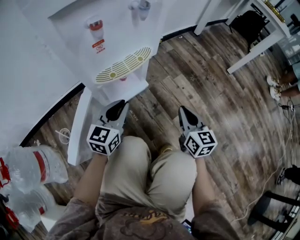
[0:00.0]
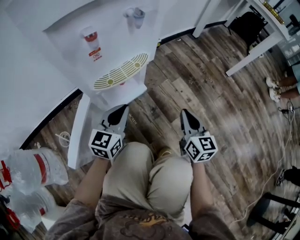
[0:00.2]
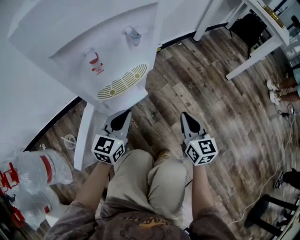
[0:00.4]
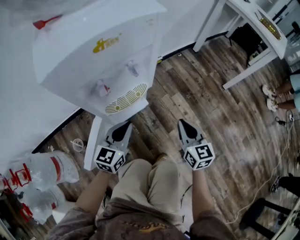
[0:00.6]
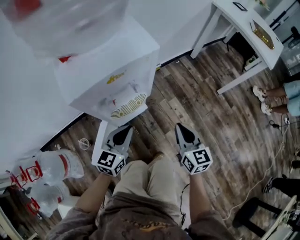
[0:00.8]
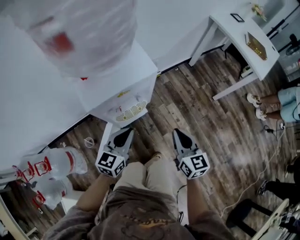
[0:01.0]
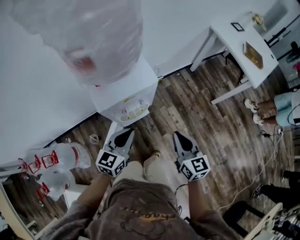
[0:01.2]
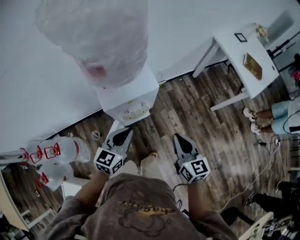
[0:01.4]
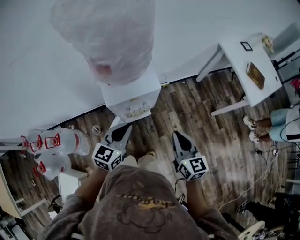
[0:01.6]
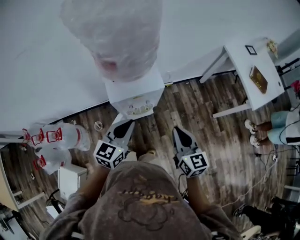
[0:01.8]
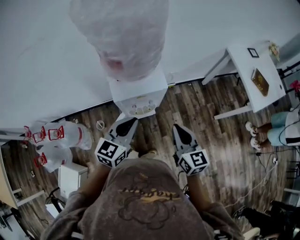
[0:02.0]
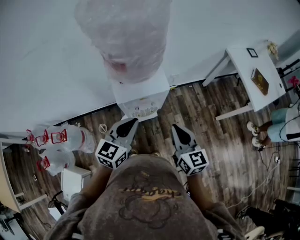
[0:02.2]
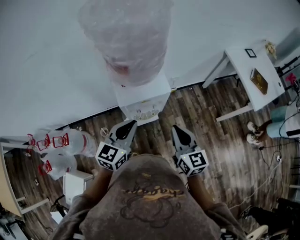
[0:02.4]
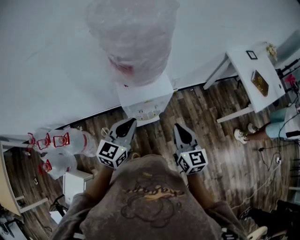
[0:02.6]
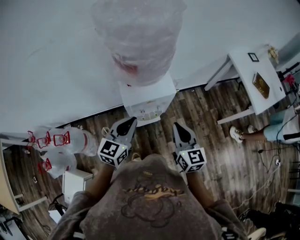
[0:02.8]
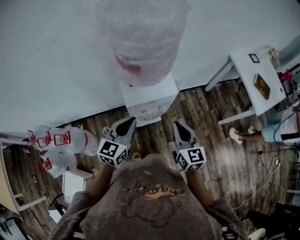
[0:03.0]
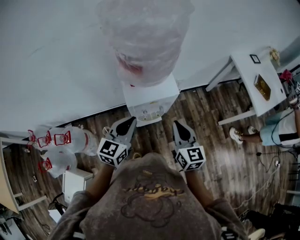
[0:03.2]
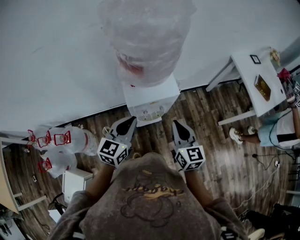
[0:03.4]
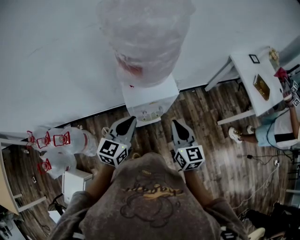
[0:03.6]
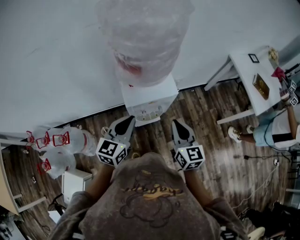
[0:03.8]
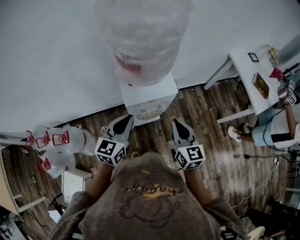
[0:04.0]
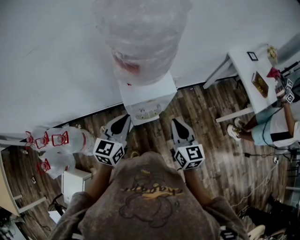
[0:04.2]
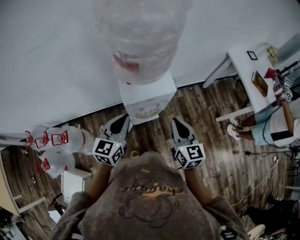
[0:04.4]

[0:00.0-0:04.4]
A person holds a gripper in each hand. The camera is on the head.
0:00.0 to 0:01.4: Both grippers move upward, roughly 60 cm.
0:01.4 to 0:03.0: The left gripper shifts approximately 10 cm upward and to the left. Meanwhile the right gripper travels to the left and upward by about 10 cm.
0:03.0 to 0:04.4: The grippers move only a little.

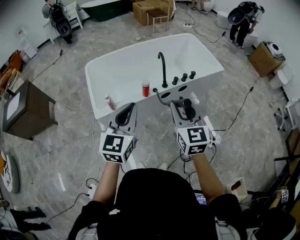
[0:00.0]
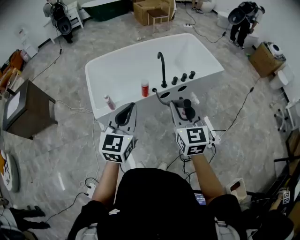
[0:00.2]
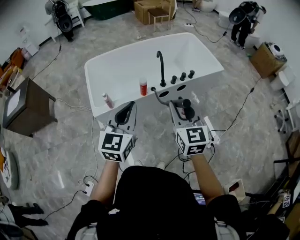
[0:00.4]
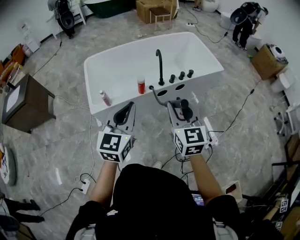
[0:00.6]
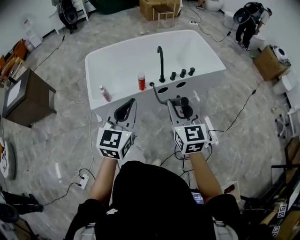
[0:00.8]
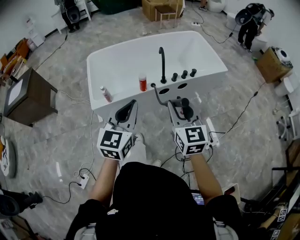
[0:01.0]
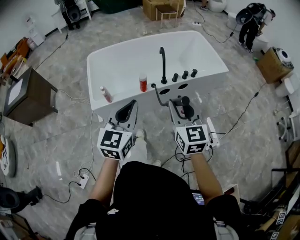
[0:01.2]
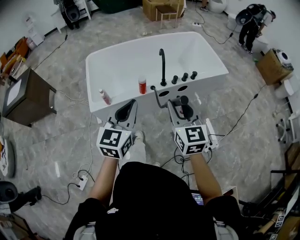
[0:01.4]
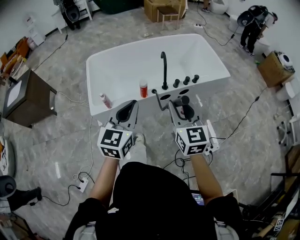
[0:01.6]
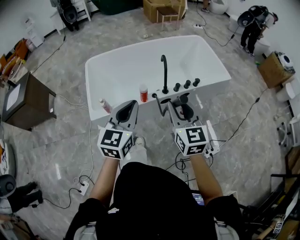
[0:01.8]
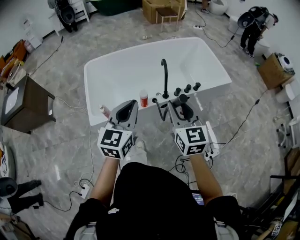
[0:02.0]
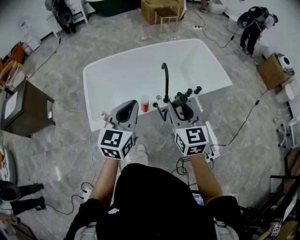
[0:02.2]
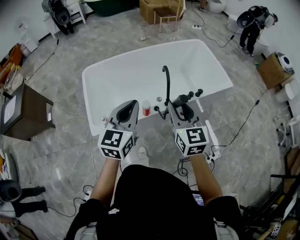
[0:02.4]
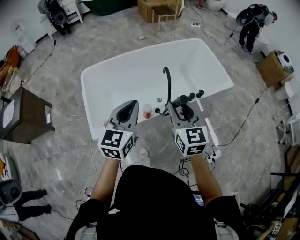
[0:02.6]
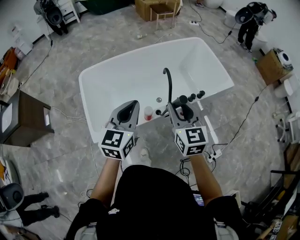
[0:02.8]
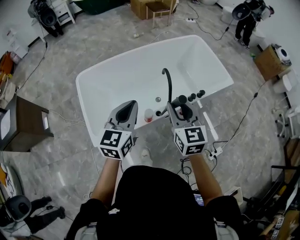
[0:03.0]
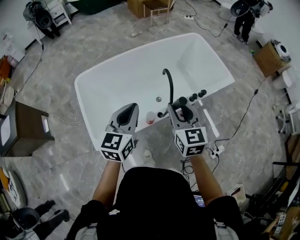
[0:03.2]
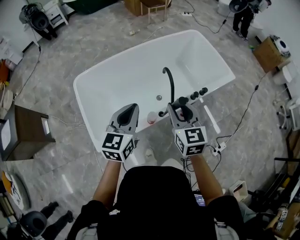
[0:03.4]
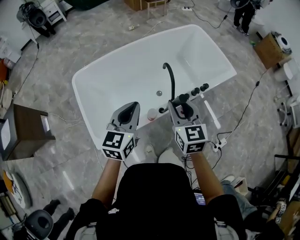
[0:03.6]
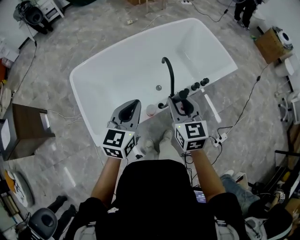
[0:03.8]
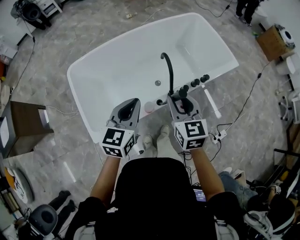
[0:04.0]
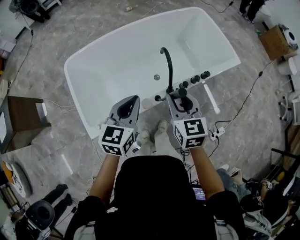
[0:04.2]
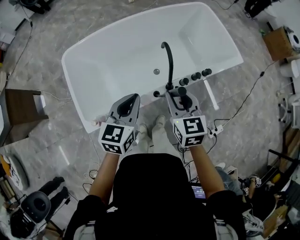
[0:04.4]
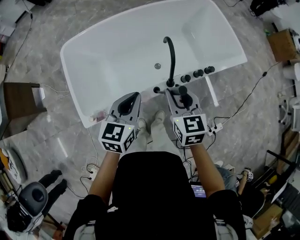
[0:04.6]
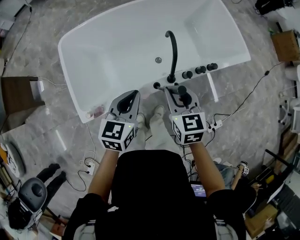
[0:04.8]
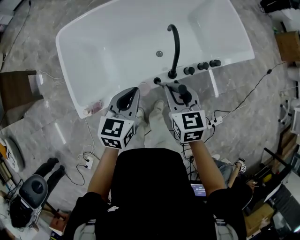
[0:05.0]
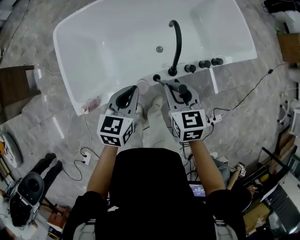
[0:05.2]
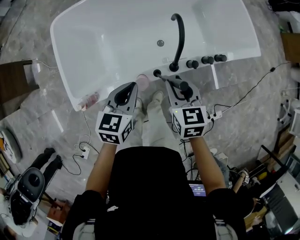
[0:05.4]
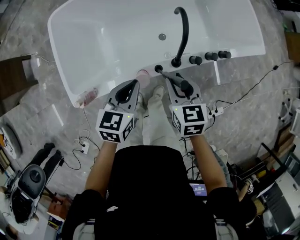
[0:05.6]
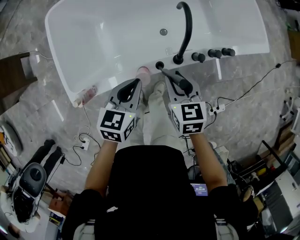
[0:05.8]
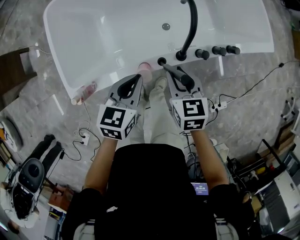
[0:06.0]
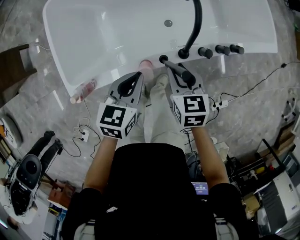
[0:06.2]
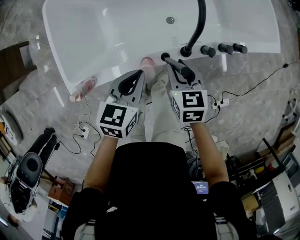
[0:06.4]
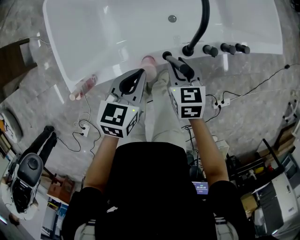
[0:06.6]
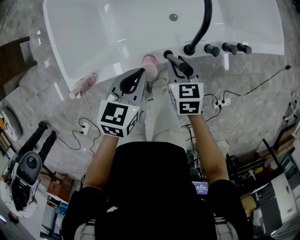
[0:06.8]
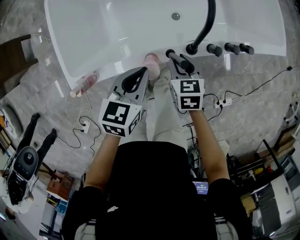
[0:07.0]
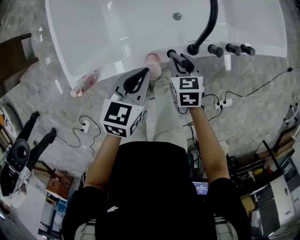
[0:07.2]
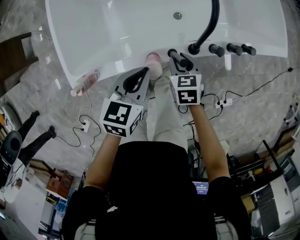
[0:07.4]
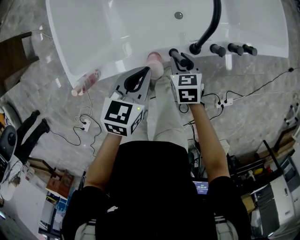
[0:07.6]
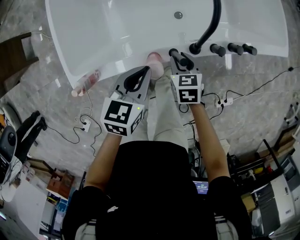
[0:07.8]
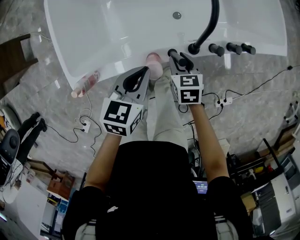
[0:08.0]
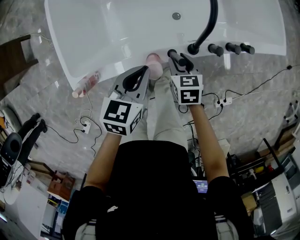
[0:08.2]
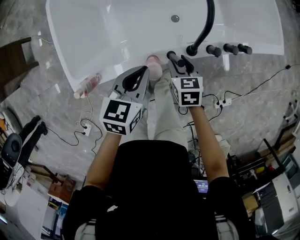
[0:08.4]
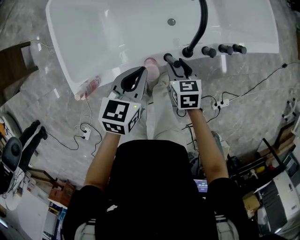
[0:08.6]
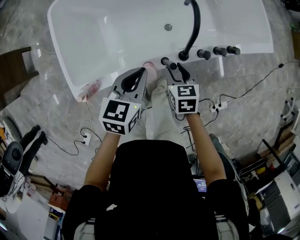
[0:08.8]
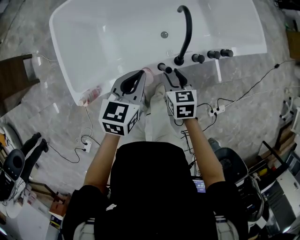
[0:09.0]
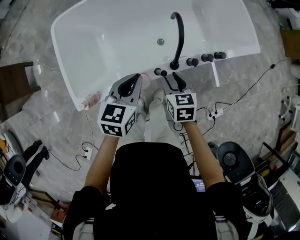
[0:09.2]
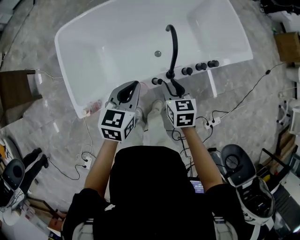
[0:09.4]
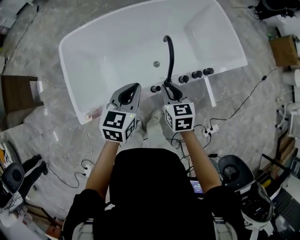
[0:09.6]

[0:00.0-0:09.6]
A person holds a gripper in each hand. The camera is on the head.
0:00.0 to 0:01.6: The right gripper travels forward by approximately 5 cm; the left gripper shifts about 10 cm to the right and forward.
0:01.6 to 0:03.2: The grippers both shift forward by approximately 30 cm.
0:03.2 to 0:04.8: The grippers both shift downward by about 15 cm.
0:04.8 to 0:06.4: Both grippers move downward, some 20 cm.
0:06.4 to 0:08.0: The right gripper goes about 10 cm downward.
0:08.0 to 0:09.6: Both grippers move upward, about 20 cm.

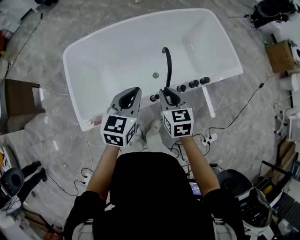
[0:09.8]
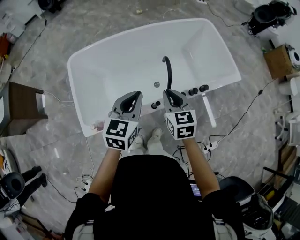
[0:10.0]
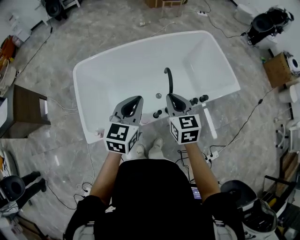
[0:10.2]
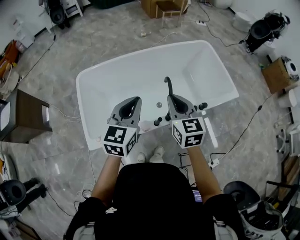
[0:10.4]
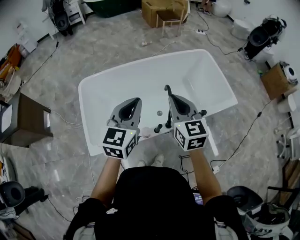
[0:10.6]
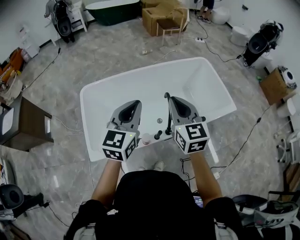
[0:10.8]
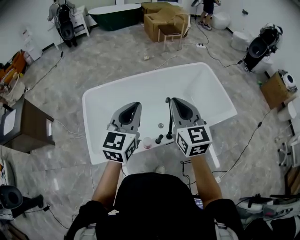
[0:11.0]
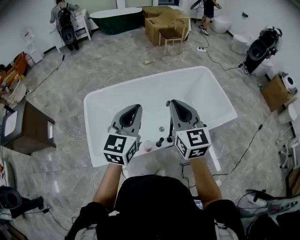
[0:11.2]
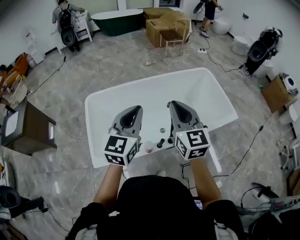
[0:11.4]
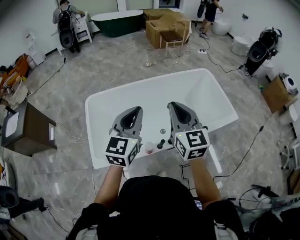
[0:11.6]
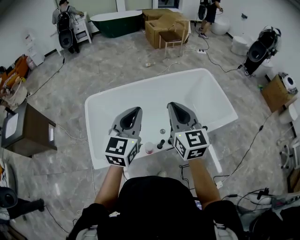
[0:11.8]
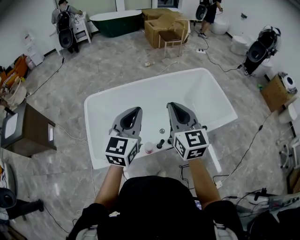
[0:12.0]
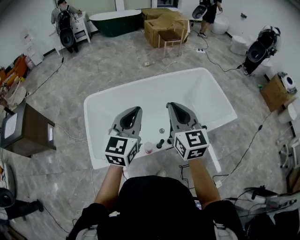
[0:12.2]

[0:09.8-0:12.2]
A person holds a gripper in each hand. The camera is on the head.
0:09.8 to 0:11.0: Both grippers move upward, some 25 cm. The right gripper rotates some 30 degrees; the left gripper turns by some 20 degrees.
0:11.0 to 0:12.2: The grippers stay close to where they were, moving slightly.

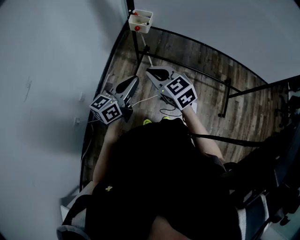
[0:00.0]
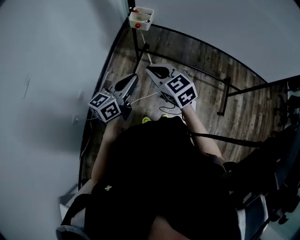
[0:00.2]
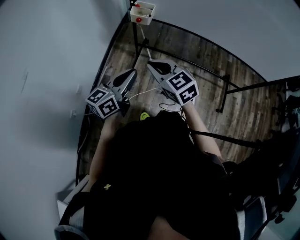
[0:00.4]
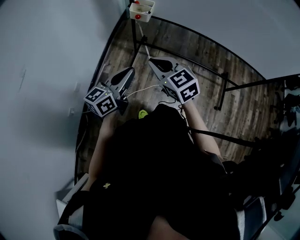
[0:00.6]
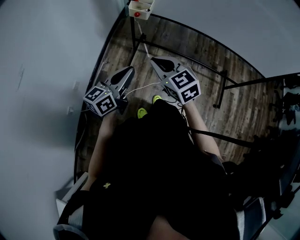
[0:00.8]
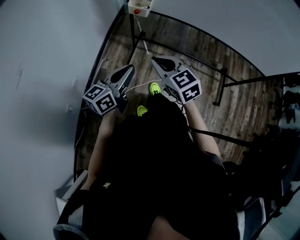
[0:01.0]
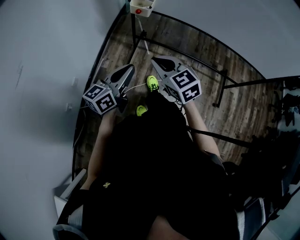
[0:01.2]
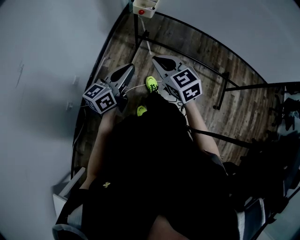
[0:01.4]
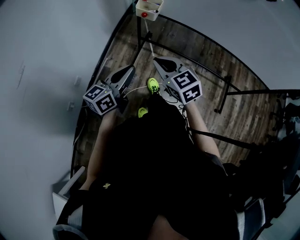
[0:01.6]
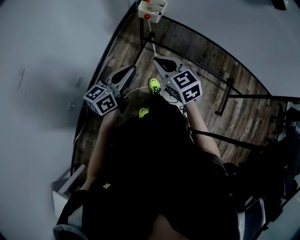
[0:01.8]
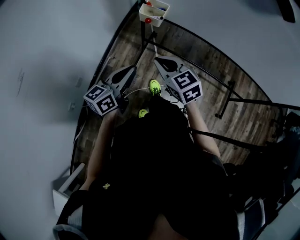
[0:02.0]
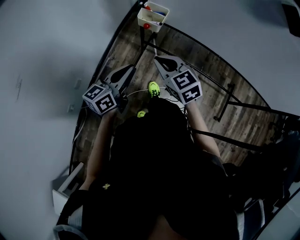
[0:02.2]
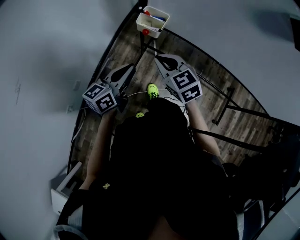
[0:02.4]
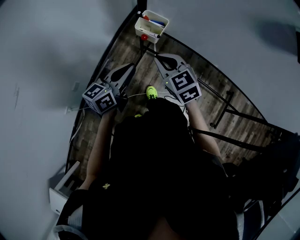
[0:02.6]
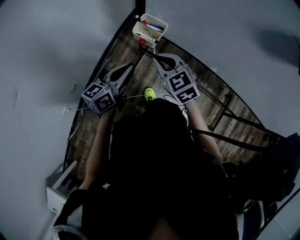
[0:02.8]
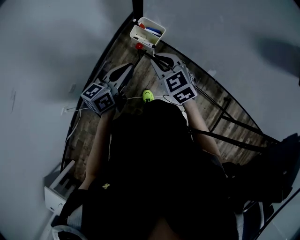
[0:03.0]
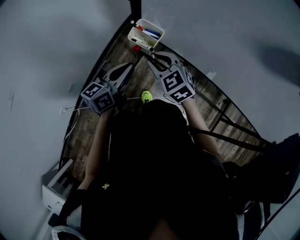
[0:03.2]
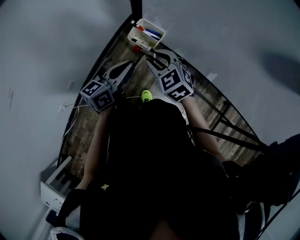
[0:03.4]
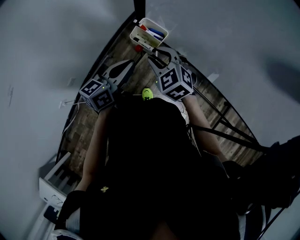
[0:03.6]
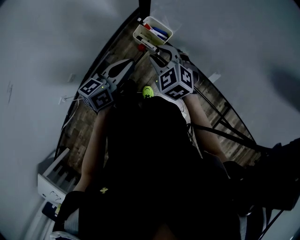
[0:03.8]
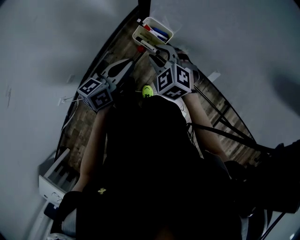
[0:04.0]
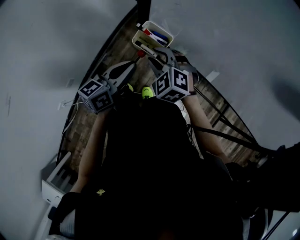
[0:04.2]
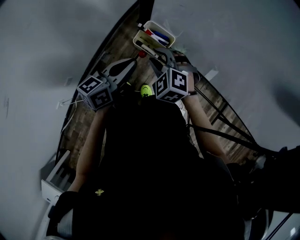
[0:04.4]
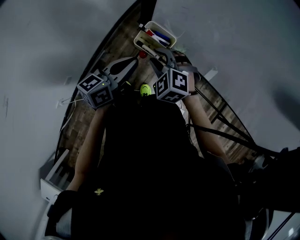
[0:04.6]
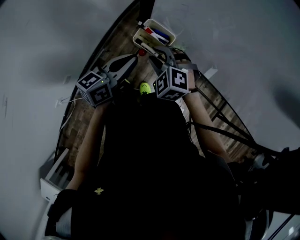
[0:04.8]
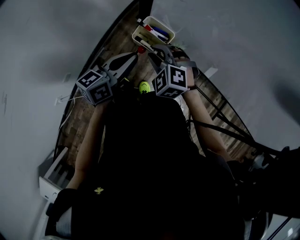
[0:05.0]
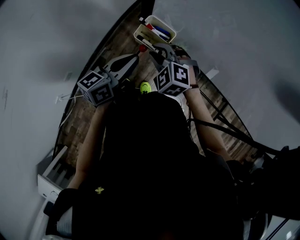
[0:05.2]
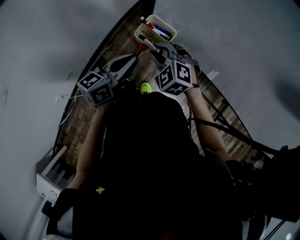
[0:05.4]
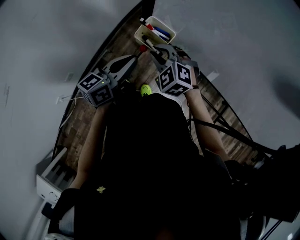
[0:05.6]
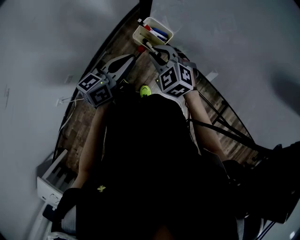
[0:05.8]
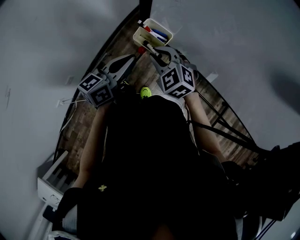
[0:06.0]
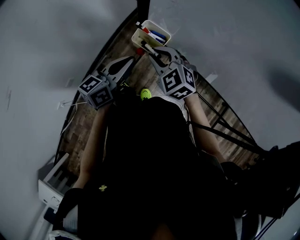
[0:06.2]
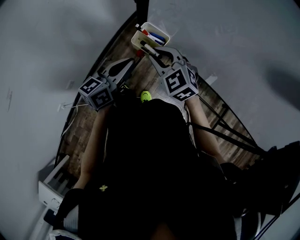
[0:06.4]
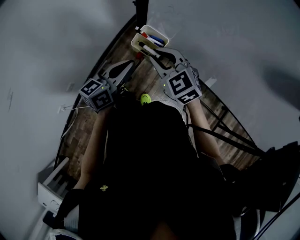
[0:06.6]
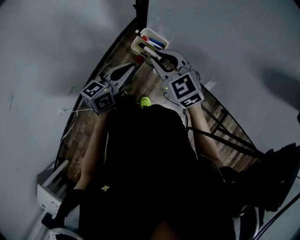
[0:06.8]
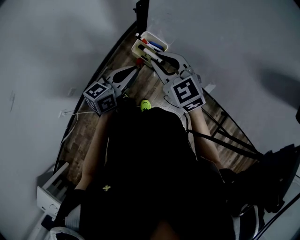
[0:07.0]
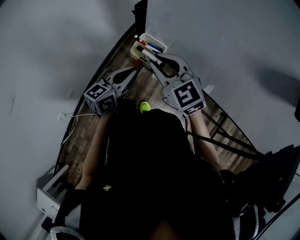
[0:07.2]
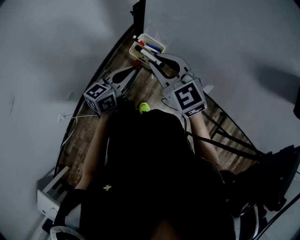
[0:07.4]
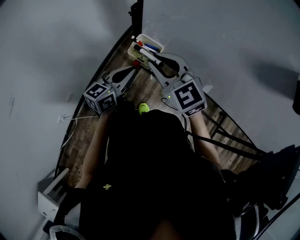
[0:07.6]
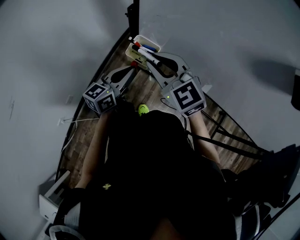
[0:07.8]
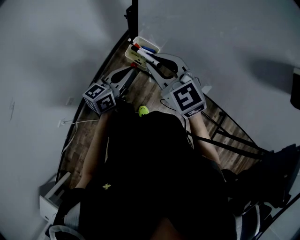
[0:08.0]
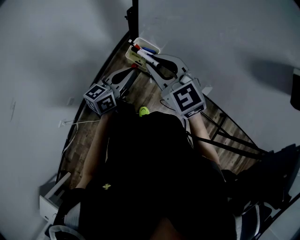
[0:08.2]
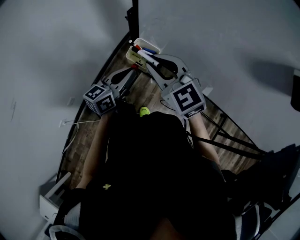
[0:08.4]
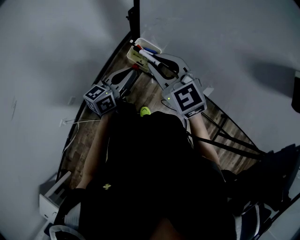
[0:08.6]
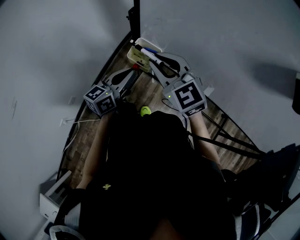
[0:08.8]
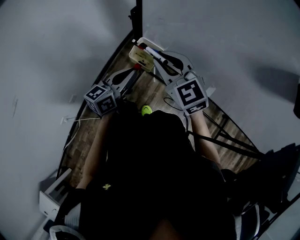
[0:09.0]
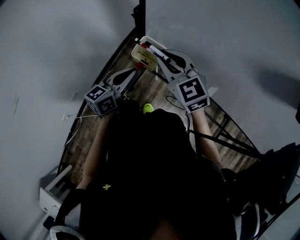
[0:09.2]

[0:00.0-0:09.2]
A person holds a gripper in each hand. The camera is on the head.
0:00.0 to 0:01.6: The grippers move only a little.
0:01.6 to 0:03.0: Both grippers travel together forward, some 20 cm.
0:03.0 to 0:04.6: The left gripper moves forward, about 5 cm; the right gripper travels downward and forward by about 10 cm, turns by approximately 30 degrees, and opens its fingers.
0:04.6 to 0:06.2: The right gripper moves upward, approximately 5 cm.
0:06.2 to 0:07.6: The right gripper shifts some 10 cm upward.
0:07.6 to 0:09.2: The right gripper changes place by about 5 cm.
